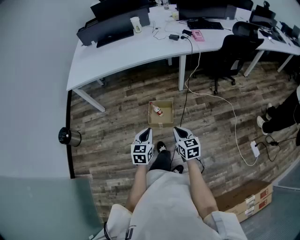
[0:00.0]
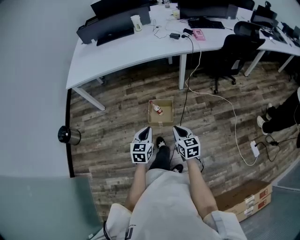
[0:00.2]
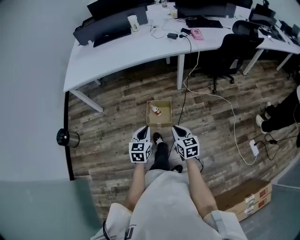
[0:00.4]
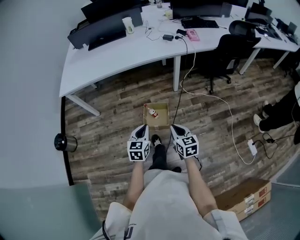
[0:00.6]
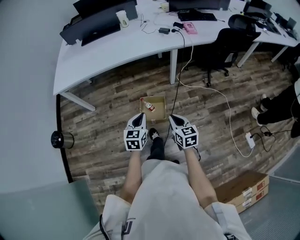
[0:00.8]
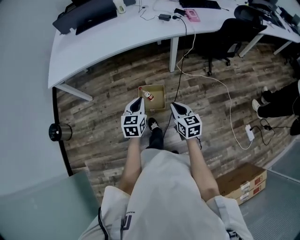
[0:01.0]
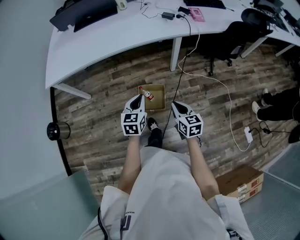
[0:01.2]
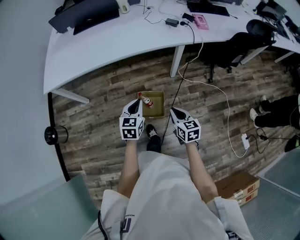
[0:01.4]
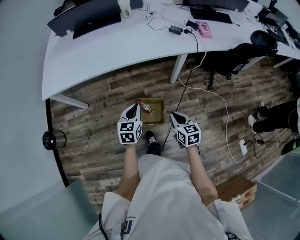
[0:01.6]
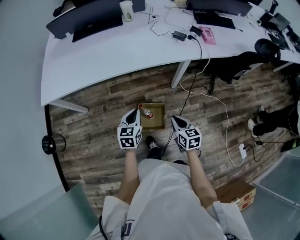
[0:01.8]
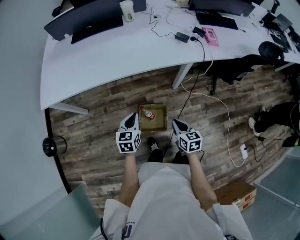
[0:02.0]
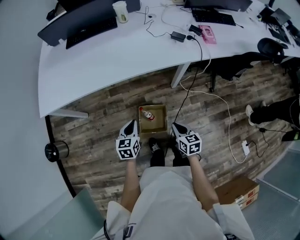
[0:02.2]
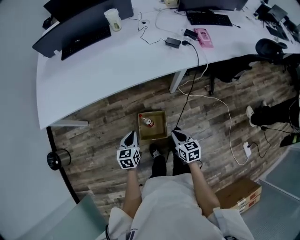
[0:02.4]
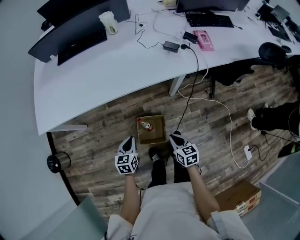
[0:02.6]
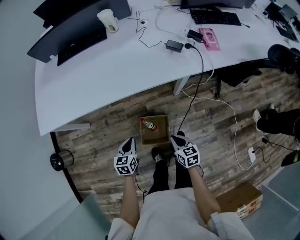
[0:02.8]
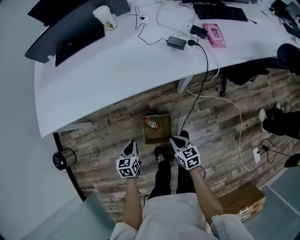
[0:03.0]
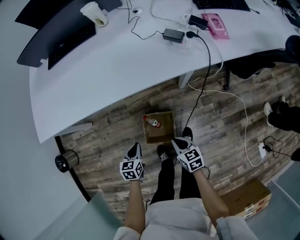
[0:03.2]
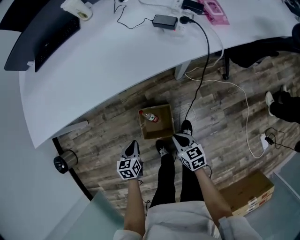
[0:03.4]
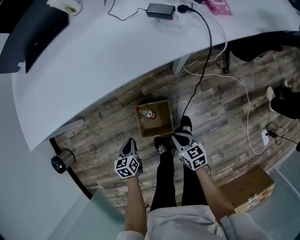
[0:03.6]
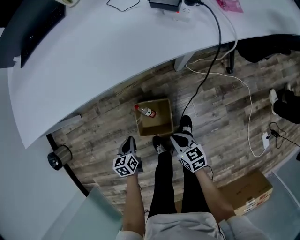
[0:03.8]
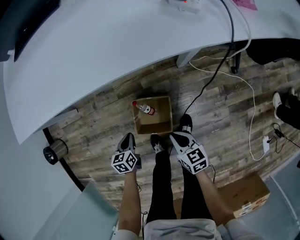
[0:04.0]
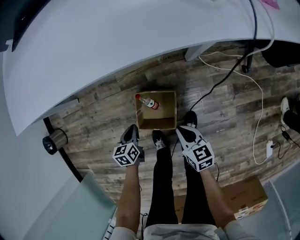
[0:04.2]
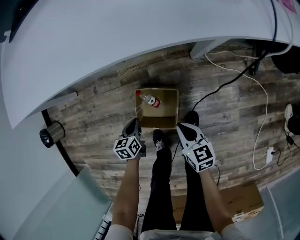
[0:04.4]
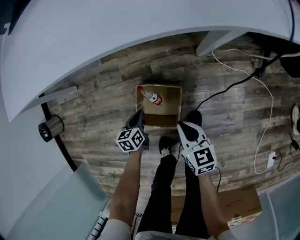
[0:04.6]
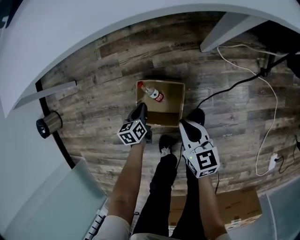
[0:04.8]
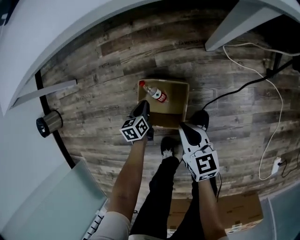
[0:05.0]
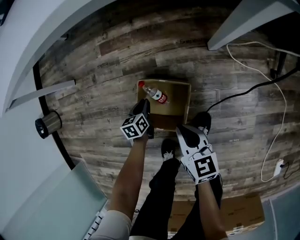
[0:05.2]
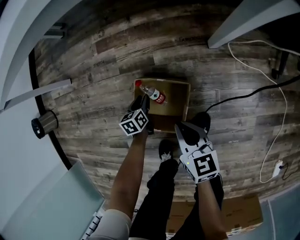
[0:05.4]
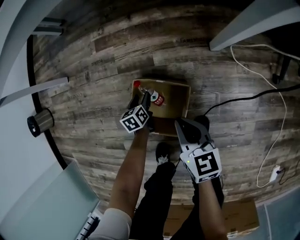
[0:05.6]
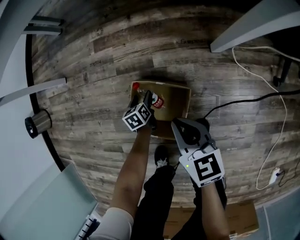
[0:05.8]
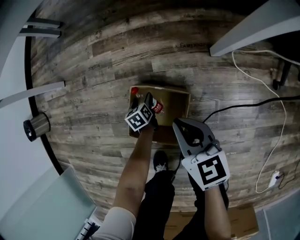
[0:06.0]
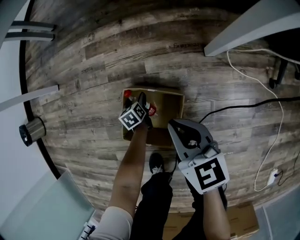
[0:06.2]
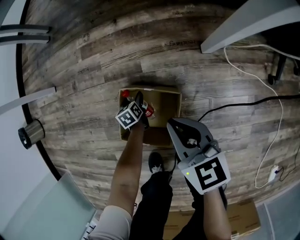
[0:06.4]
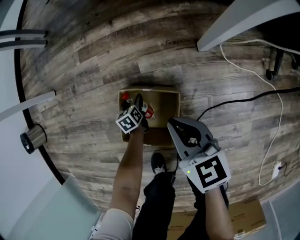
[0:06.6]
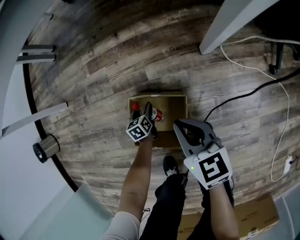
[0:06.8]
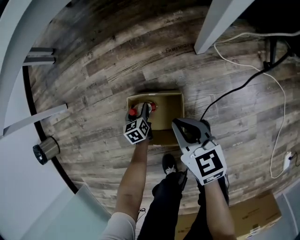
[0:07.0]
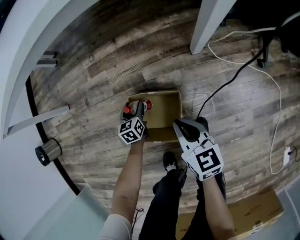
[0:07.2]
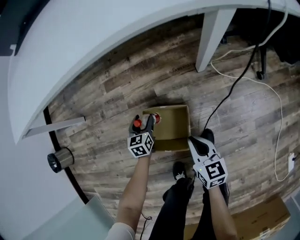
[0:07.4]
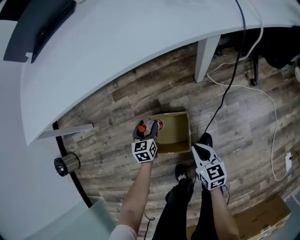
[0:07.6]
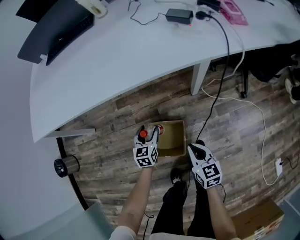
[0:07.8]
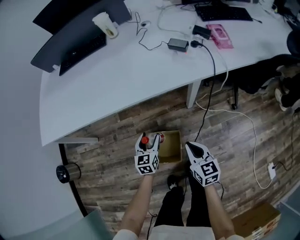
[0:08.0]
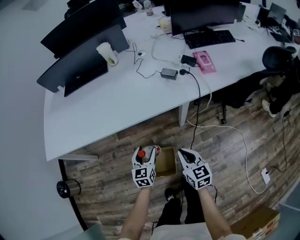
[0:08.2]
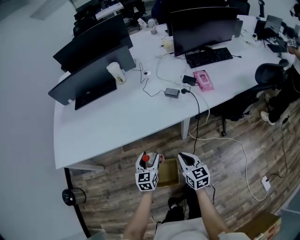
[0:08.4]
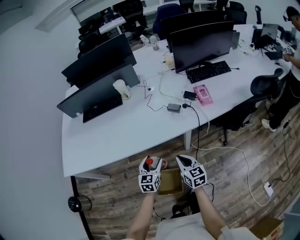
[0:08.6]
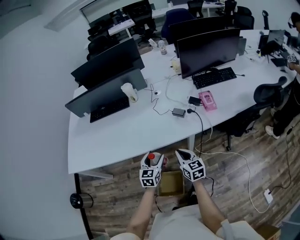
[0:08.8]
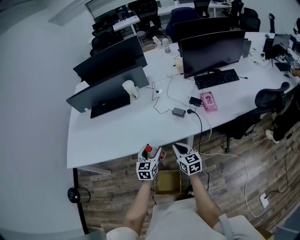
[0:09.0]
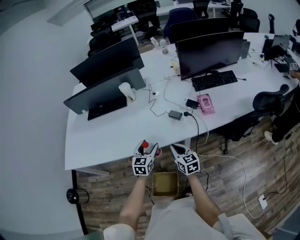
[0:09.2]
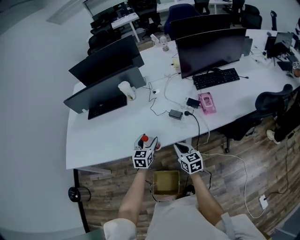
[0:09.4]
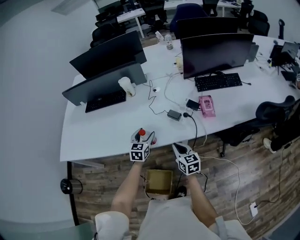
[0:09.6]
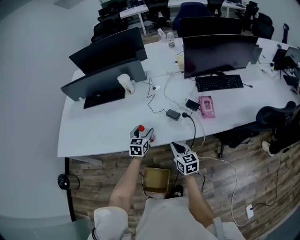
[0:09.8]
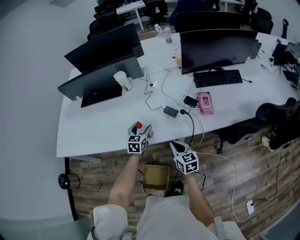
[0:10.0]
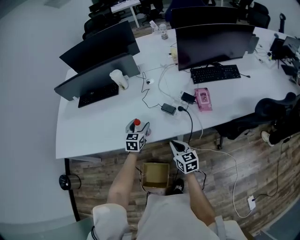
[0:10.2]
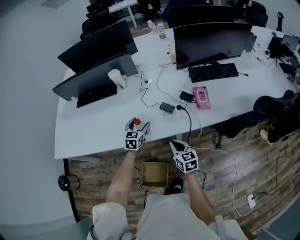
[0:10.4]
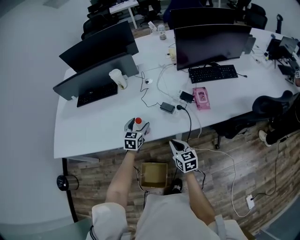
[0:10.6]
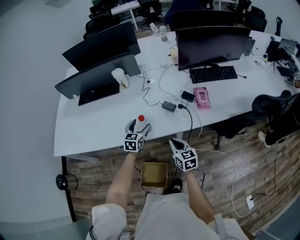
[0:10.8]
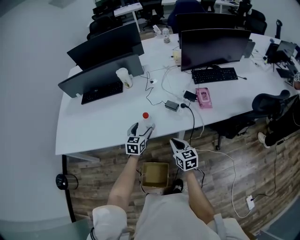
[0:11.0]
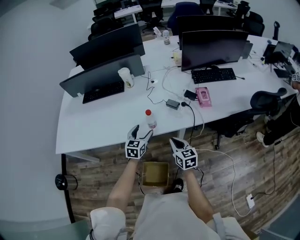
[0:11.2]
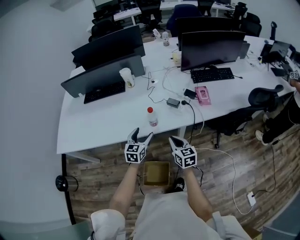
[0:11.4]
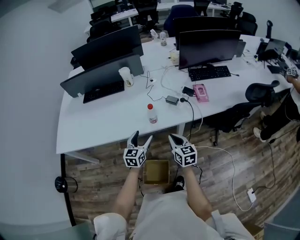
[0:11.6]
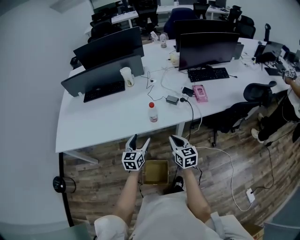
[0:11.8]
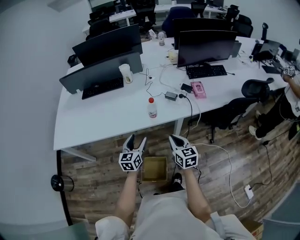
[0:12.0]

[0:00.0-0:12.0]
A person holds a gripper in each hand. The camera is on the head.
0:00.0 to 0:01.6: Both grippers move forward, about 30 cm.
0:01.6 to 0:03.0: Both grippers travel together downward and forward, some 20 cm.
0:03.0 to 0:04.4: The two grippers go approximately 30 cm downward.
0:04.4 to 0:06.0: The right gripper goes approximately 10 cm downward and forward. Meanwhile the left gripper is displaced downward by some 30 cm, and opens its fingers.
0:06.0 to 0:07.6: The left gripper goes roughly 30 cm upward, and turns by roughly 40 degrees. Meanwhile the right gripper heads upward and backward, covering roughly 15 cm, and changes its angle by roughly 20 degrees.
0:07.6 to 0:09.0: The left gripper travels upward by some 60 cm, and swivels about 20 degrees, while the right gripper heads upward and forward, covering roughly 50 cm.
0:09.0 to 0:10.4: The right gripper goes some 10 cm to the right and downward, while the left gripper travels forward by some 15 cm.
0:10.4 to 0:12.0: The left gripper moves backward and to the left, about 30 cm, and changes its angle by roughly 20 degrees, while the right gripper shifts roughly 20 cm backward, to the left and upward.

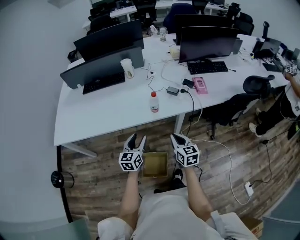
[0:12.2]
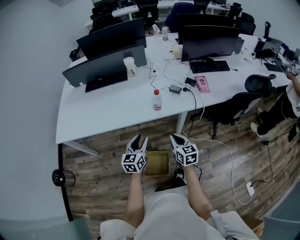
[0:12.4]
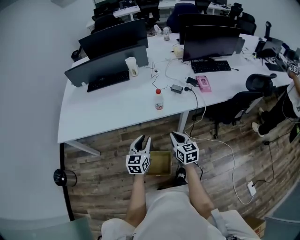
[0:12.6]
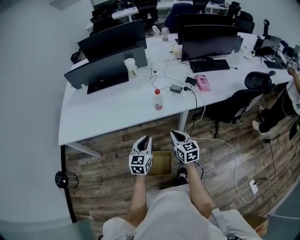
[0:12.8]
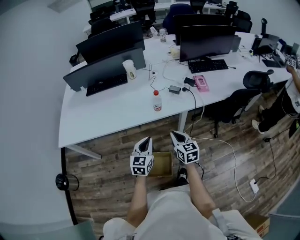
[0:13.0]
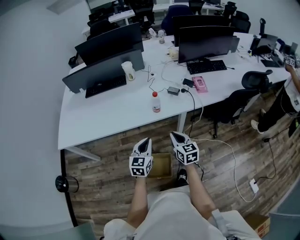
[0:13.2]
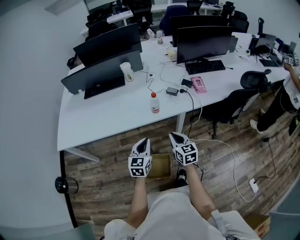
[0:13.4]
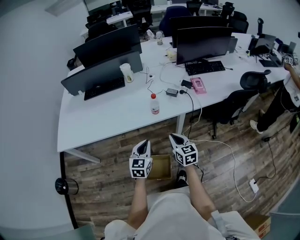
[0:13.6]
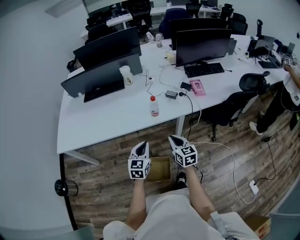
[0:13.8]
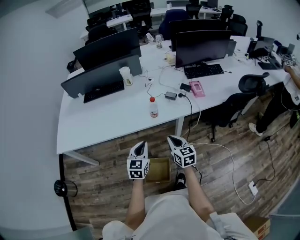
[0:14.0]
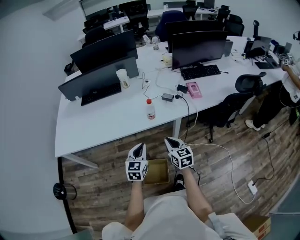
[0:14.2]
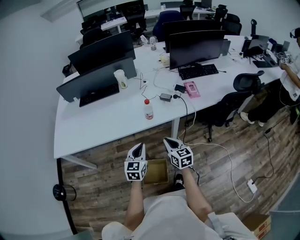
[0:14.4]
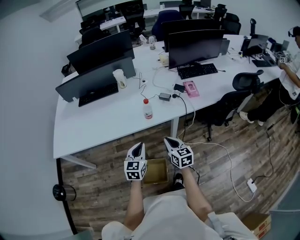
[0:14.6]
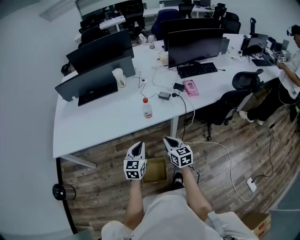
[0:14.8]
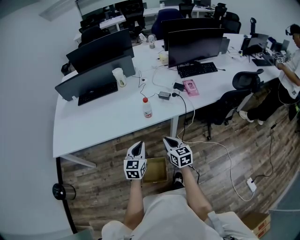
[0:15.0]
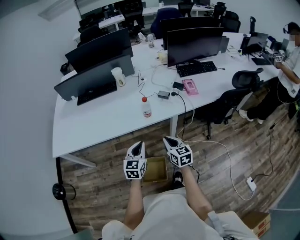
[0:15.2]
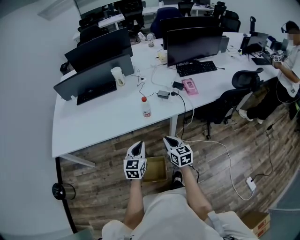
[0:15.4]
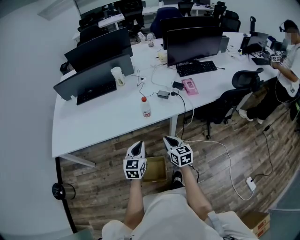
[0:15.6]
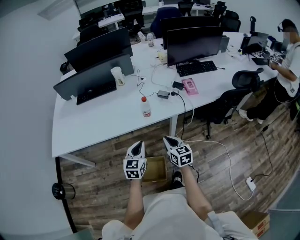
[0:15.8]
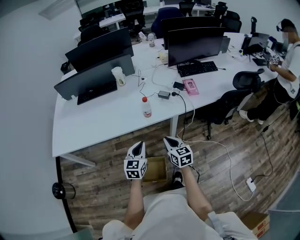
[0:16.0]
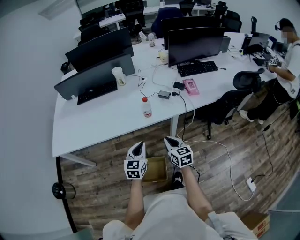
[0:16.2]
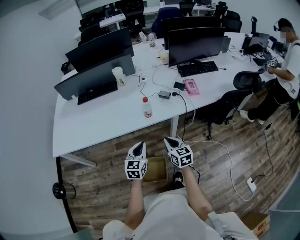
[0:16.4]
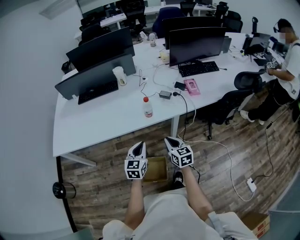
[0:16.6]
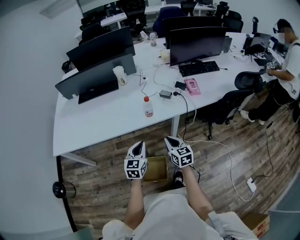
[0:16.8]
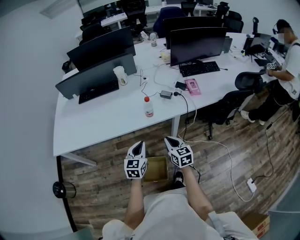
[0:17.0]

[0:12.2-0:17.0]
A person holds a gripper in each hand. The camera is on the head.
0:12.2 to 0:13.8: The left gripper closes up.
0:13.8 to 0:15.4: The grippers move only a little.
0:15.4 to 0:17.0: Both grippers stay about where they are.

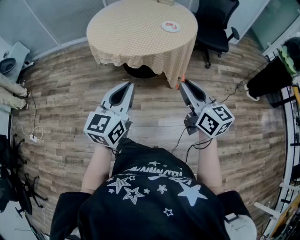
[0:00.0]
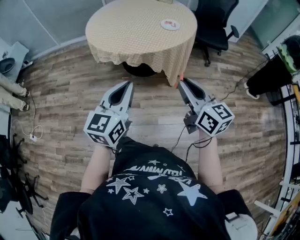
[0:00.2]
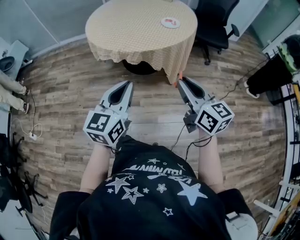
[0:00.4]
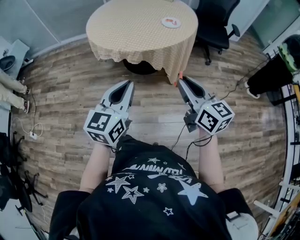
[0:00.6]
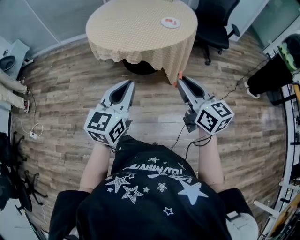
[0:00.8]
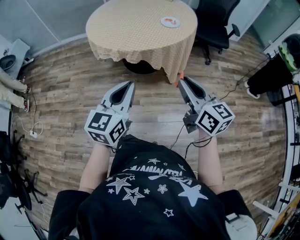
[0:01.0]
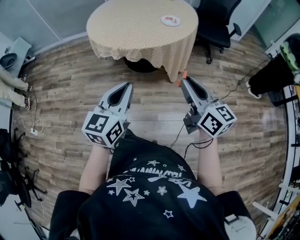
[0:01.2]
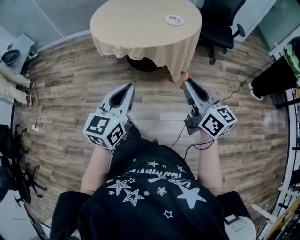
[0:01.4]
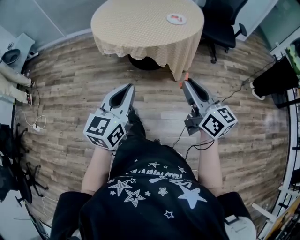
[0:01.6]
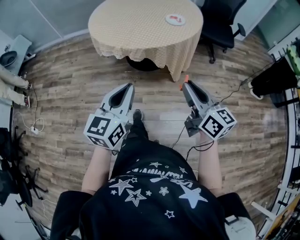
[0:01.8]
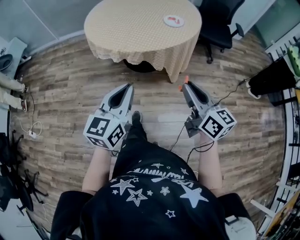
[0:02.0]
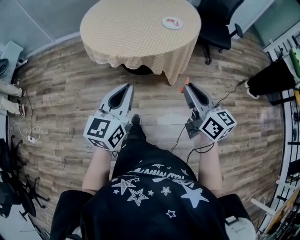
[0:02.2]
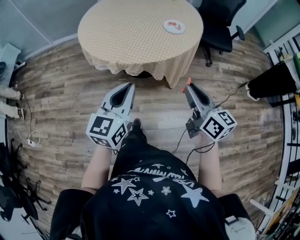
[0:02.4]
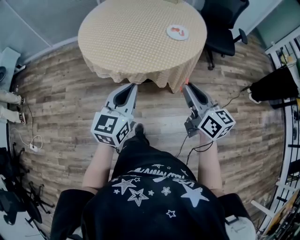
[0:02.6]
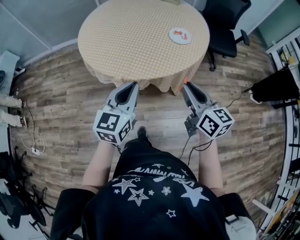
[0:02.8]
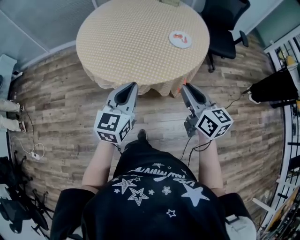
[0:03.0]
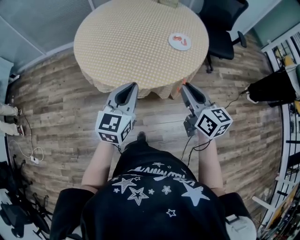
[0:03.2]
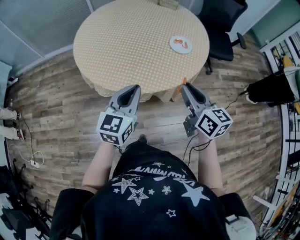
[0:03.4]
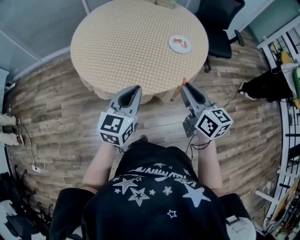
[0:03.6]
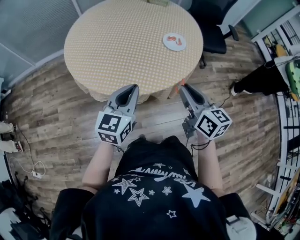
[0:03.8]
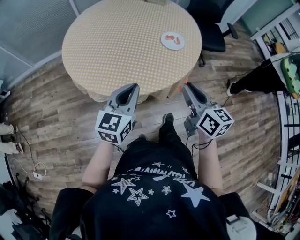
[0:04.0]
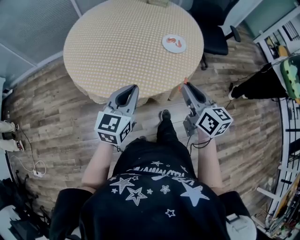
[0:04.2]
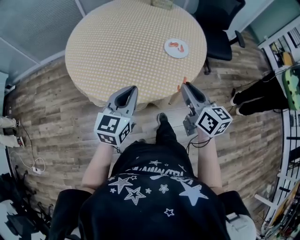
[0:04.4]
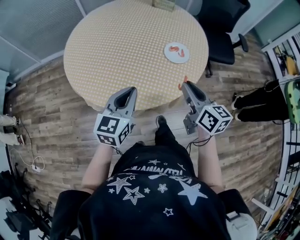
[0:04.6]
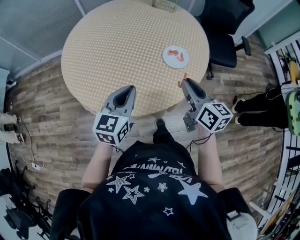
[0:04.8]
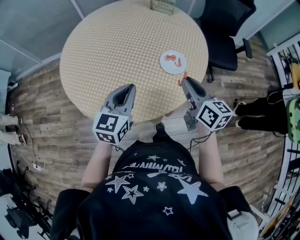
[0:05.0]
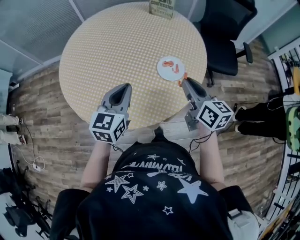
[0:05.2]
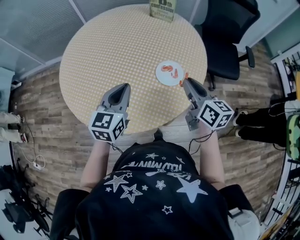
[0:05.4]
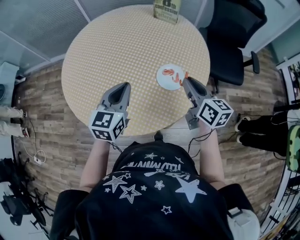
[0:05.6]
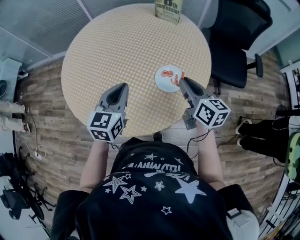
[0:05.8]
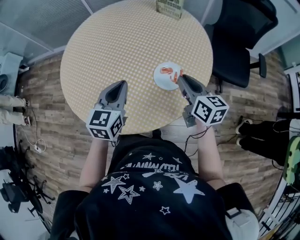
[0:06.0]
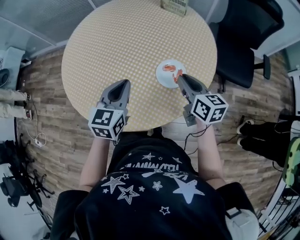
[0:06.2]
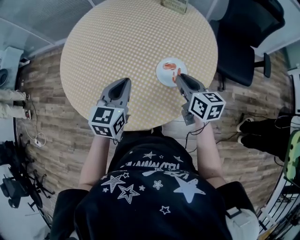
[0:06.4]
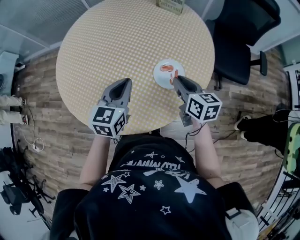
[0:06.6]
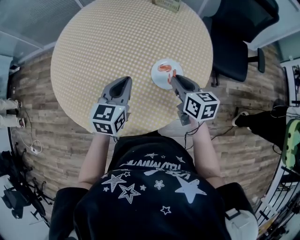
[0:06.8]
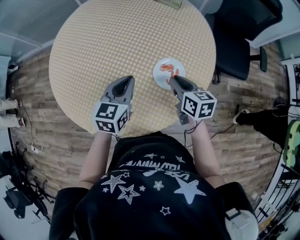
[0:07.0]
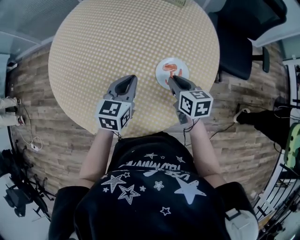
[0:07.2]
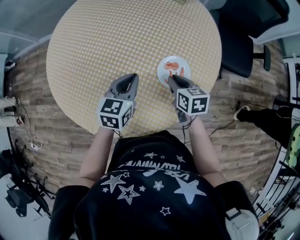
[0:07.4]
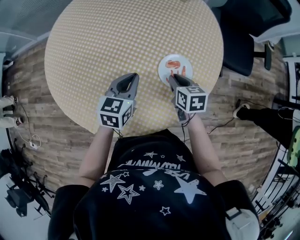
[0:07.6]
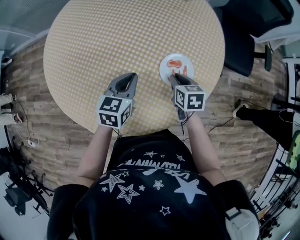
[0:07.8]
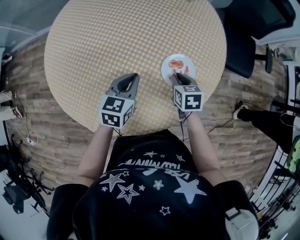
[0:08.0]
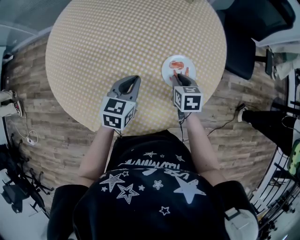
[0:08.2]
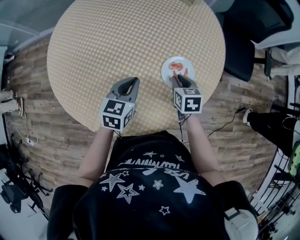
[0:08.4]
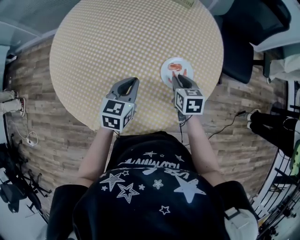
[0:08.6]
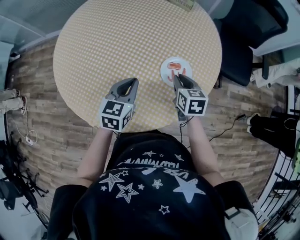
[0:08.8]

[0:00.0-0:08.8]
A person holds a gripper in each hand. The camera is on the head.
0:00.0 to 0:01.4: There are only small adjustments of the grippers.
0:01.4 to 0:03.0: The two grippers go about 30 cm forward.
0:03.0 to 0:04.4: Both grippers travel together forward, some 10 cm.
0:04.4 to 0:05.8: Both grippers move forward and to the right, approximately 25 cm.
0:05.8 to 0:07.4: The left gripper heads downward and forward, covering approximately 10 cm. The right gripper shifts about 15 cm downward, and swivels approximately 30 degrees.
0:07.4 to 0:08.8: There are only small adjustments of the grippers.
